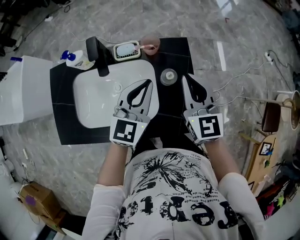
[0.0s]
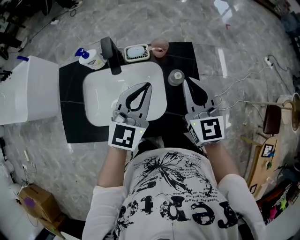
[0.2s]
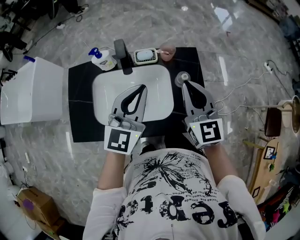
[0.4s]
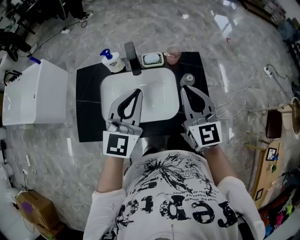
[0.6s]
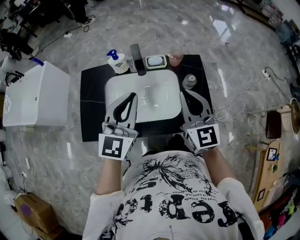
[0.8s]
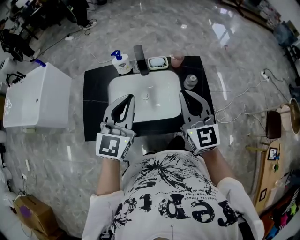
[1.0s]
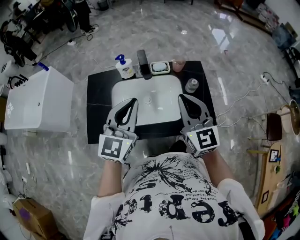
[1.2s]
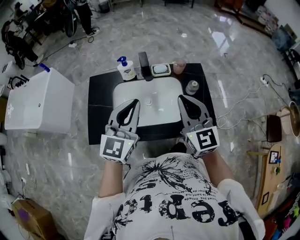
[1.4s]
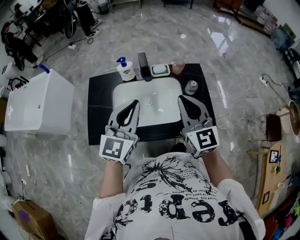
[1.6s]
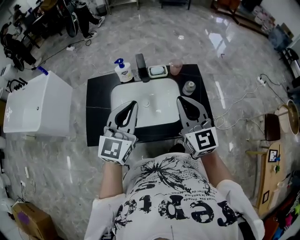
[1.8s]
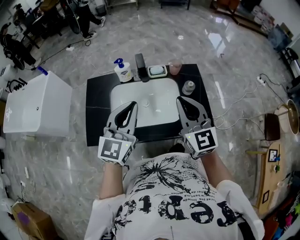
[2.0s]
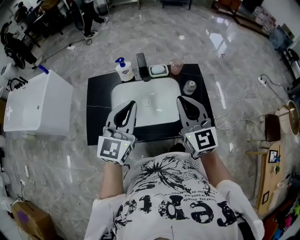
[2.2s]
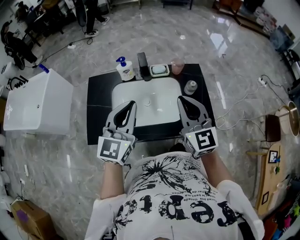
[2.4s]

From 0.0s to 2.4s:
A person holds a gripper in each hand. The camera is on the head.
From 0.0s to 1.2s: Both grippers travel together to the left, backward and upward, roughly 35 cm.
From 1.2s to 2.4s: The grippers make only small movements.

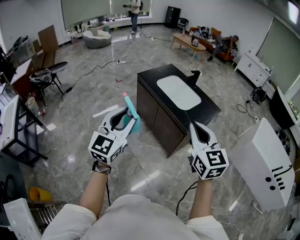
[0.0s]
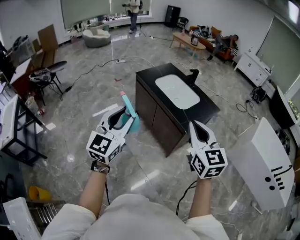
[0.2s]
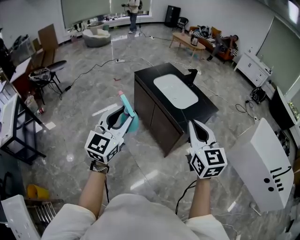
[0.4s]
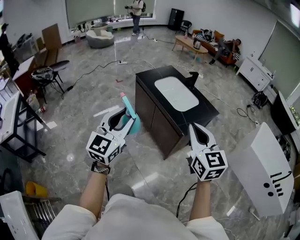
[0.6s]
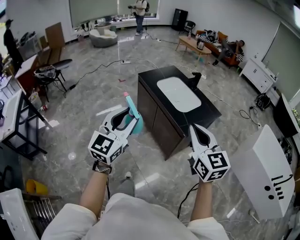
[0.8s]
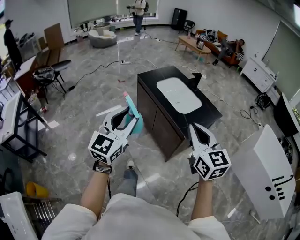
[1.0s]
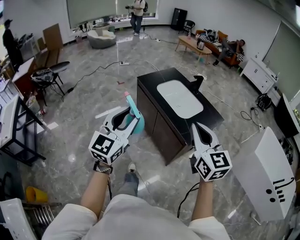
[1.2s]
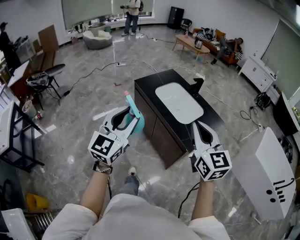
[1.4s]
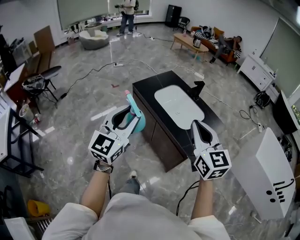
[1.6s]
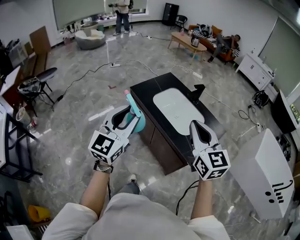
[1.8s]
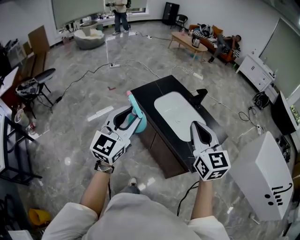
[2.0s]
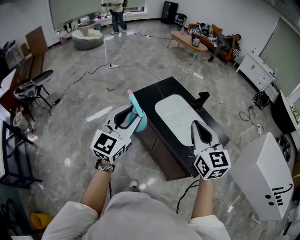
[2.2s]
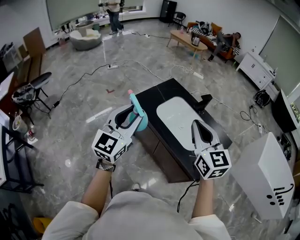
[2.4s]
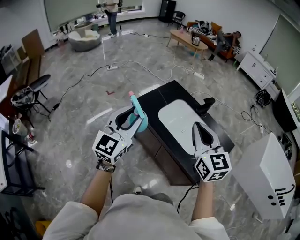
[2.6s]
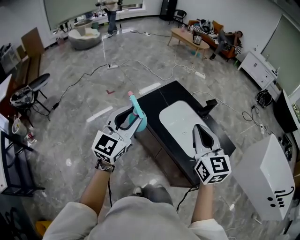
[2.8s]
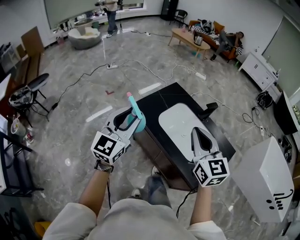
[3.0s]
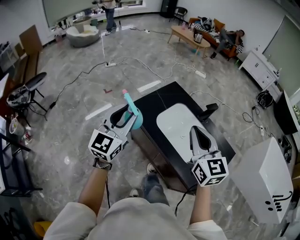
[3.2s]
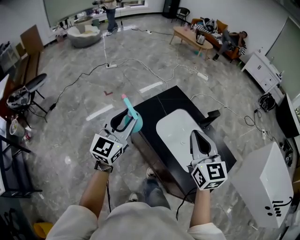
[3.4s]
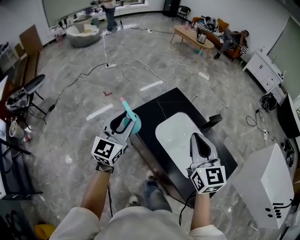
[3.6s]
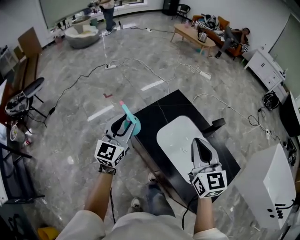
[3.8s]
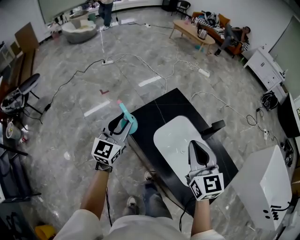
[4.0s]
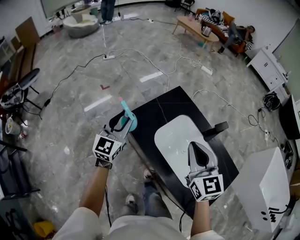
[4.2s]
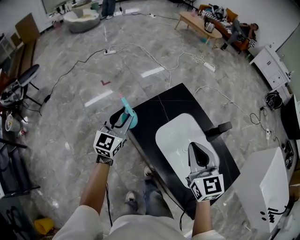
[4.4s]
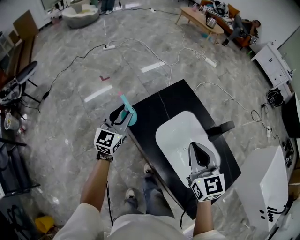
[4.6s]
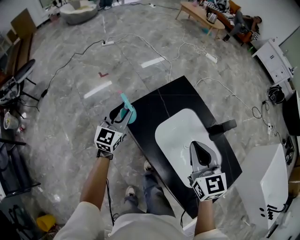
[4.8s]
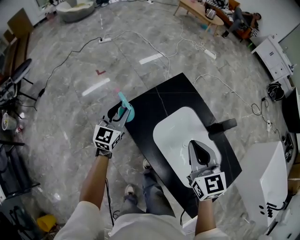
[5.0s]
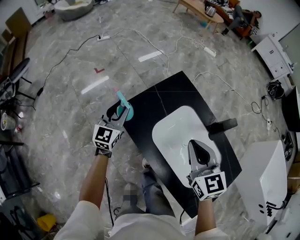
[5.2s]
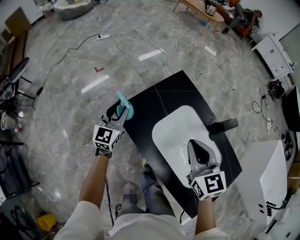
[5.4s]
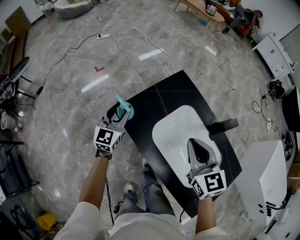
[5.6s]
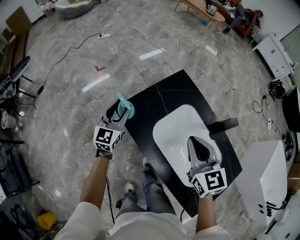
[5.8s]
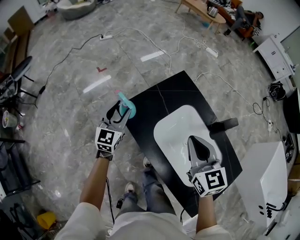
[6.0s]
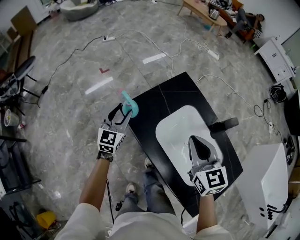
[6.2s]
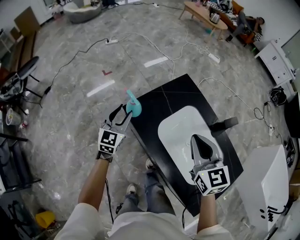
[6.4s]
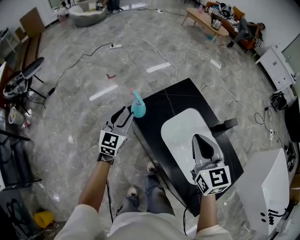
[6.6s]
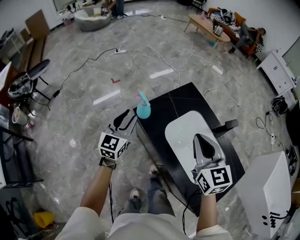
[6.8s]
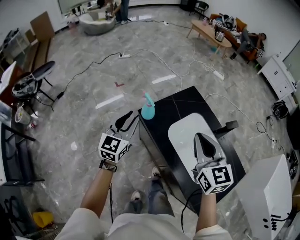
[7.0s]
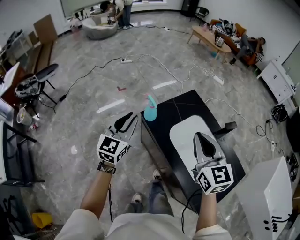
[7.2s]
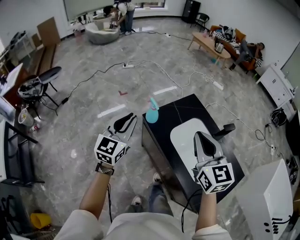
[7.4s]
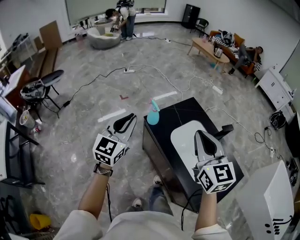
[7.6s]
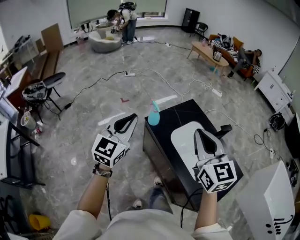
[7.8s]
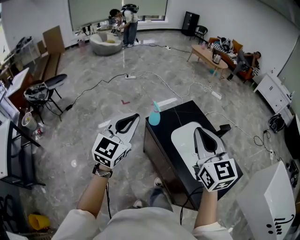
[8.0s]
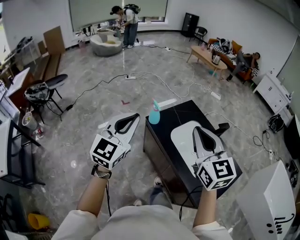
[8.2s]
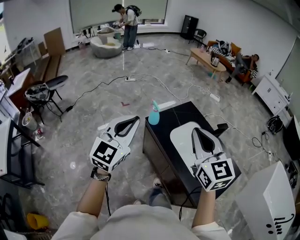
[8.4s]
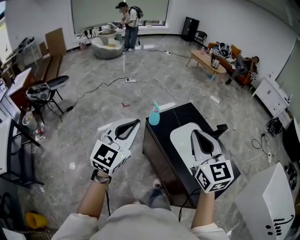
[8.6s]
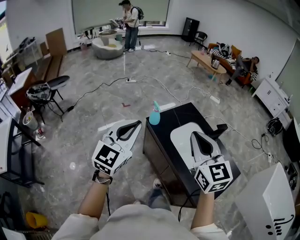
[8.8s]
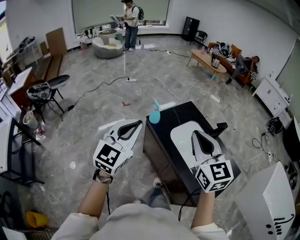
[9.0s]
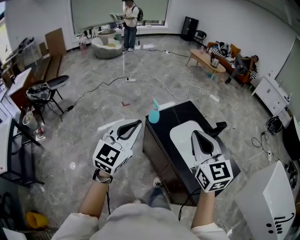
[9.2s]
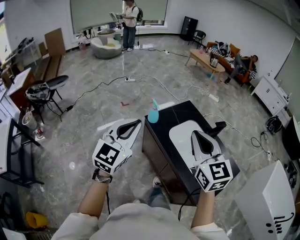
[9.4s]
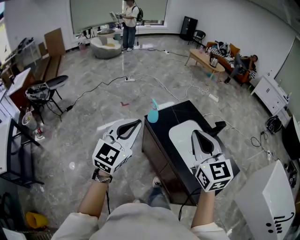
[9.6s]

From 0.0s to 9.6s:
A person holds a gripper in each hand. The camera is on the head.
From 0.0s to 1.6s: Both grippers move forward, about 25 cm.
From 1.6s to 3.2s: Both grippers travel together forward, approximately 35 cm.
From 3.2s to 4.8s: The grippers both shift forward and downward by some 30 cm.
From 4.8s to 6.4s: The grippers stay close to where they were, moving slightly.
From 6.4s to 8.0s: The left gripper goes about 40 cm upward and backward, and closes up, while the right gripper heads upward, backward and to the left, covering approximately 30 cm.
From 8.0s to 9.6s: The grippers both shift backward by some 5 cm.

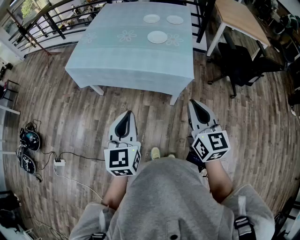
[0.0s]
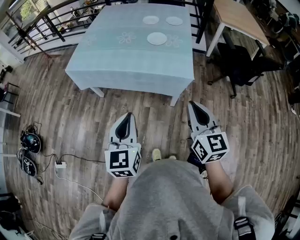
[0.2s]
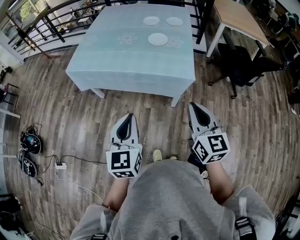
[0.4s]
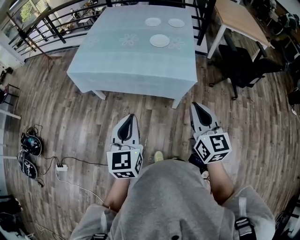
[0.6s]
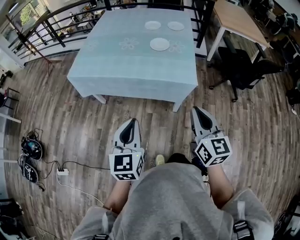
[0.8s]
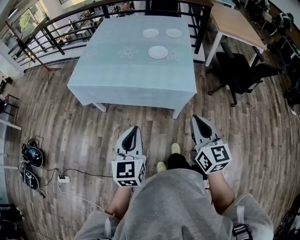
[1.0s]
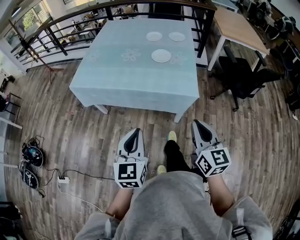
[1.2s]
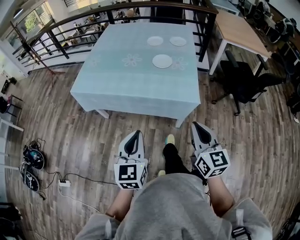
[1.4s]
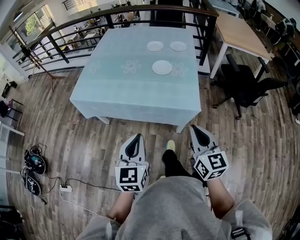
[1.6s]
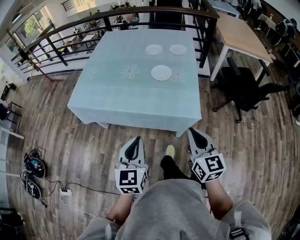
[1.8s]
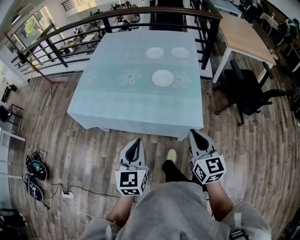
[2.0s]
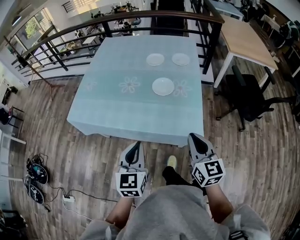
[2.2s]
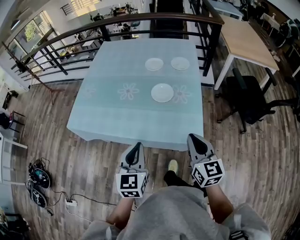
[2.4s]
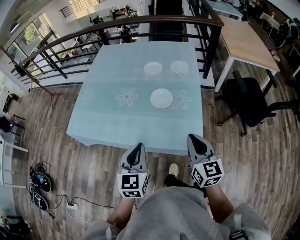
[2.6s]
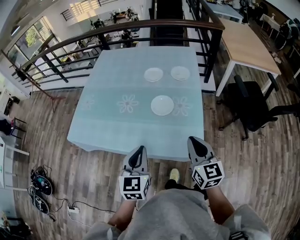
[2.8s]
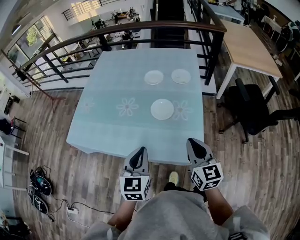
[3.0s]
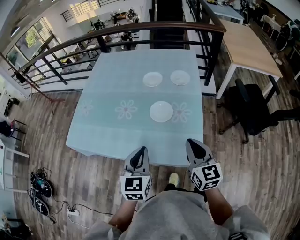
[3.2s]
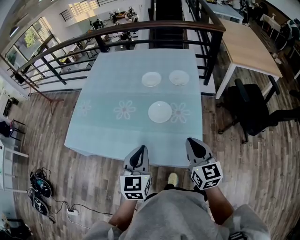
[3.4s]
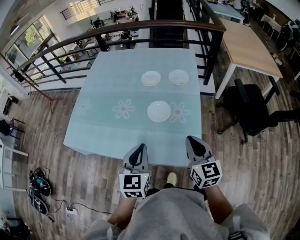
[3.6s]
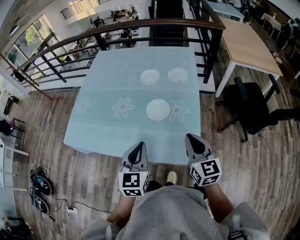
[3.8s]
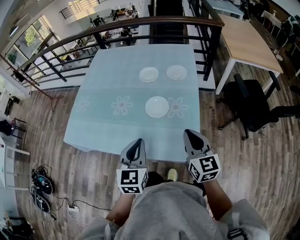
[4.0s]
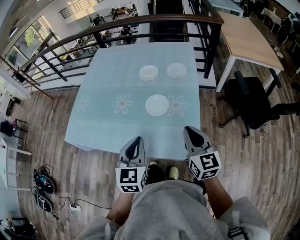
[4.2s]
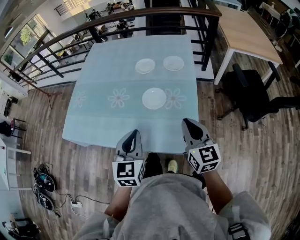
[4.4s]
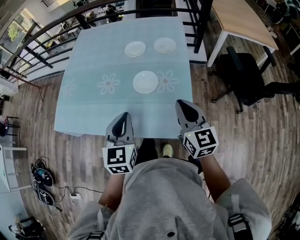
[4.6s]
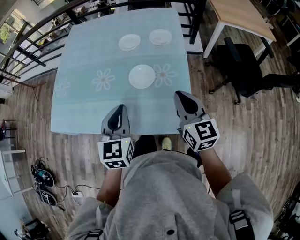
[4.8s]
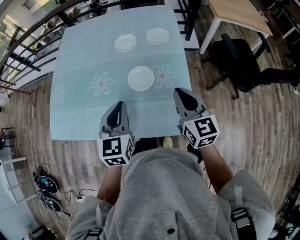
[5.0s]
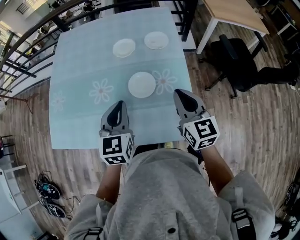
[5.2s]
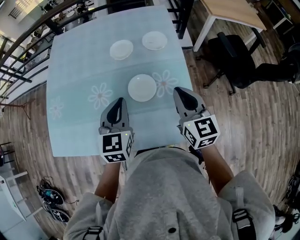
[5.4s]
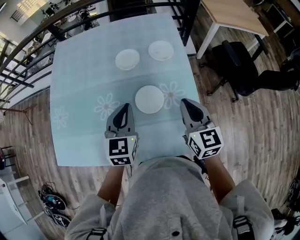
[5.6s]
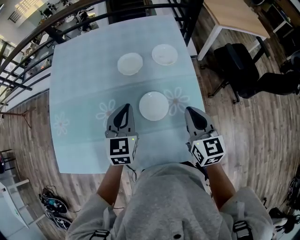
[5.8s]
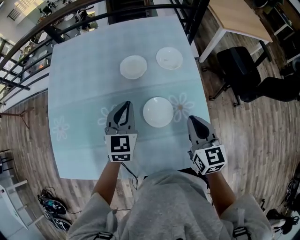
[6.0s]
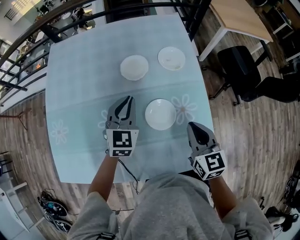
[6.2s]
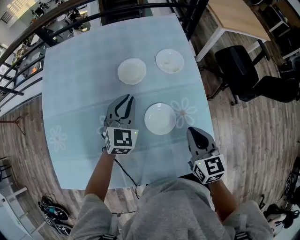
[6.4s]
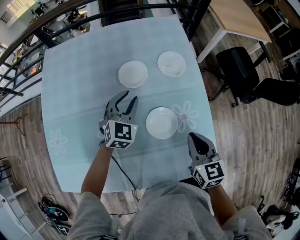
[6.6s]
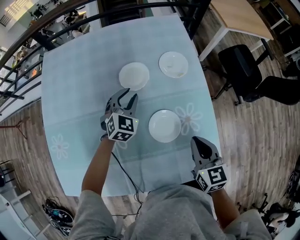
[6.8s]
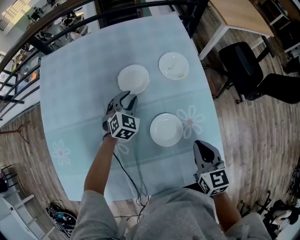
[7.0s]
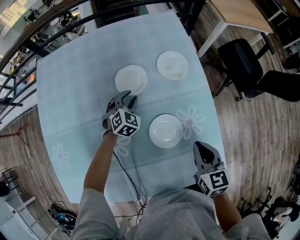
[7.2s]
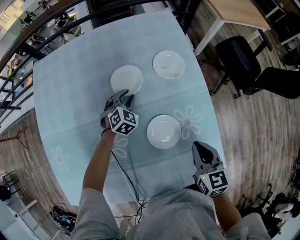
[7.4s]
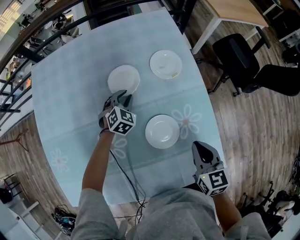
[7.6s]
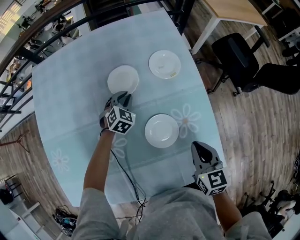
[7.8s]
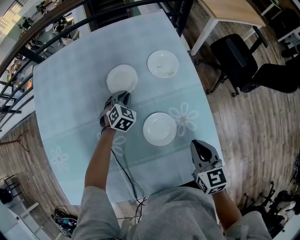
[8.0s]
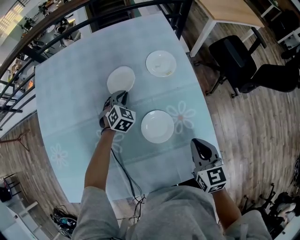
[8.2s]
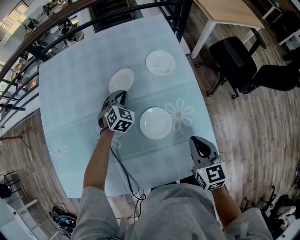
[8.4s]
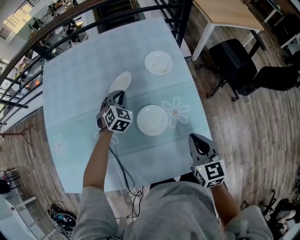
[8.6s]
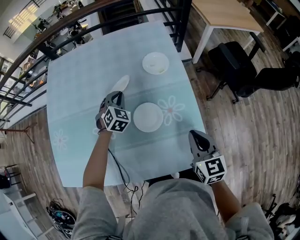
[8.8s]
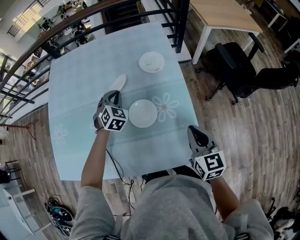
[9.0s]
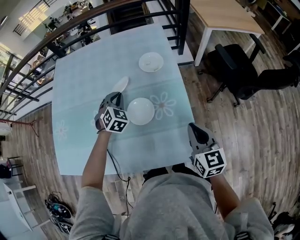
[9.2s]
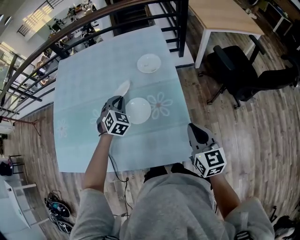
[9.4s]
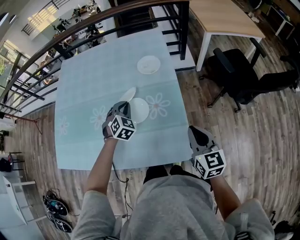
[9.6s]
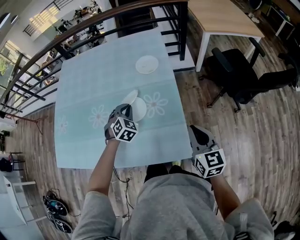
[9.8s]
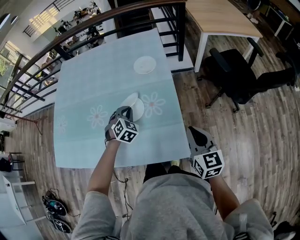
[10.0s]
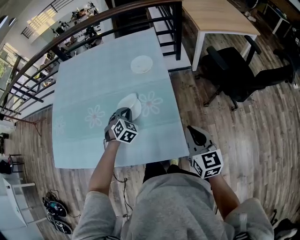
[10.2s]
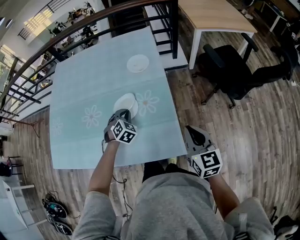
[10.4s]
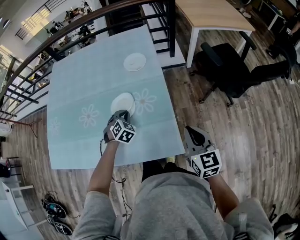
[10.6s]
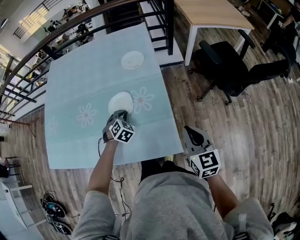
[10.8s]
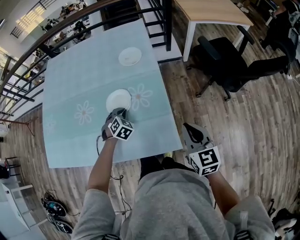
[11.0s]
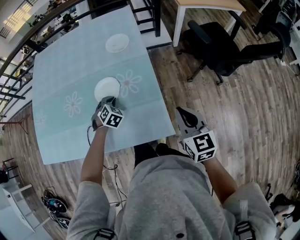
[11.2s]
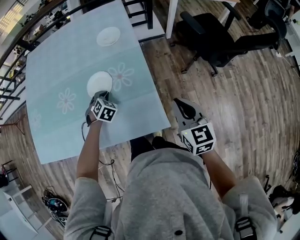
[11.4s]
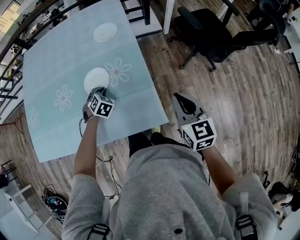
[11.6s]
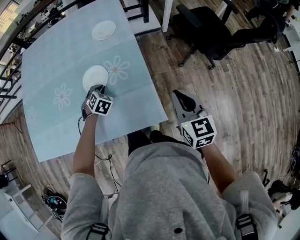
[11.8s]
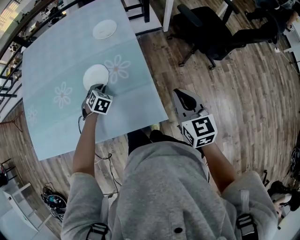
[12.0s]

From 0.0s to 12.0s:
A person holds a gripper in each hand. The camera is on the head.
From 0.0s to 1.6s: The two grippers go about 10 cm forward.
From 1.6s to 3.0s: Both grippers move forward, roughly 30 cm.
From 3.0s to 4.4s: The grippers move only a little.
From 4.4s to 6.0s: The right gripper moves forward, some 20 cm, and swivels roughly 20 degrees. Meanwhile the left gripper goes approximately 30 cm forward, and changes its angle by some 20 degrees.
From 6.0s to 7.6s: The left gripper travels downward and forward by approximately 30 cm, rotates roughly 40 degrees, and opens up; the right gripper is displaced downward by some 10 cm.
From 7.6s to 9.0s: The left gripper heads upward and backward, covering some 15 cm, and closes up; the right gripper travels to the right, backward and upward by some 15 cm.
From 9.0s to 10.4s: The right gripper travels to the right and backward by some 15 cm. The left gripper goes approximately 20 cm backward, to the right and downward.
From 10.4s to 12.0s: The left gripper goes roughly 5 cm downward.
